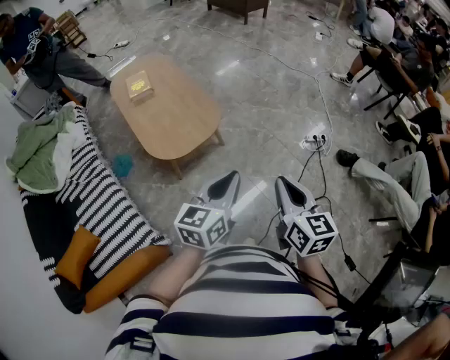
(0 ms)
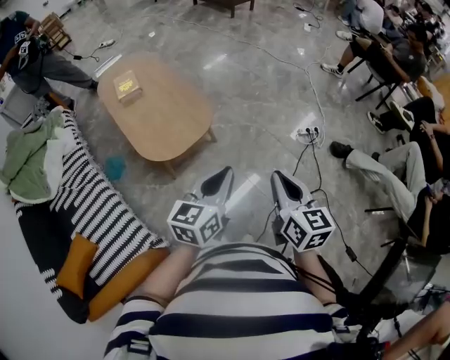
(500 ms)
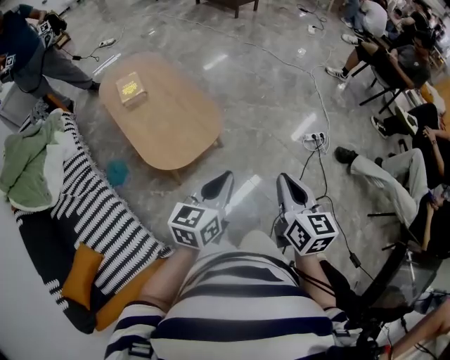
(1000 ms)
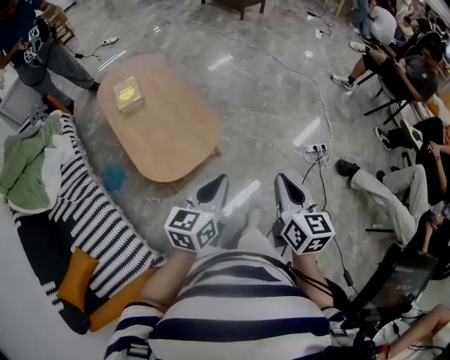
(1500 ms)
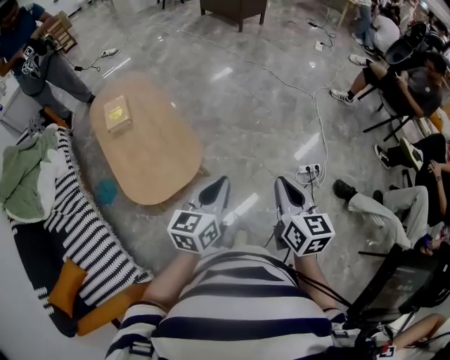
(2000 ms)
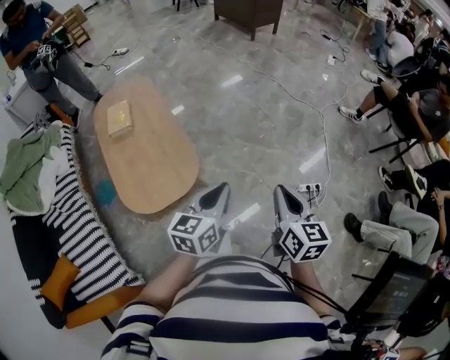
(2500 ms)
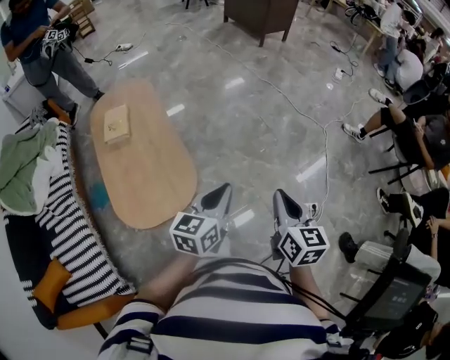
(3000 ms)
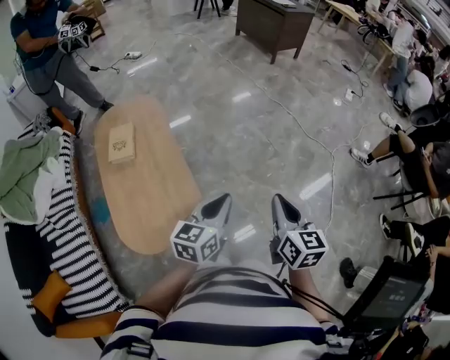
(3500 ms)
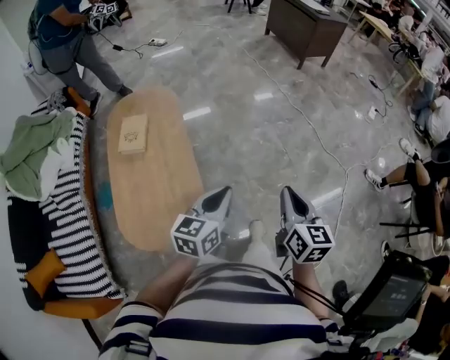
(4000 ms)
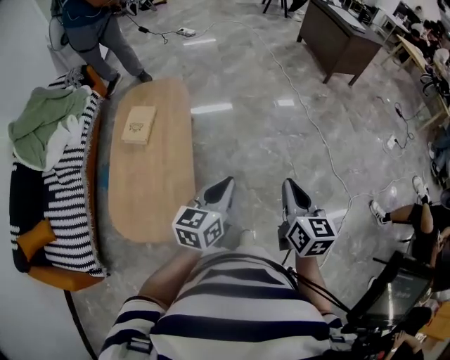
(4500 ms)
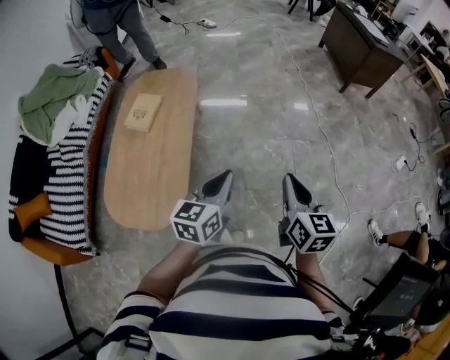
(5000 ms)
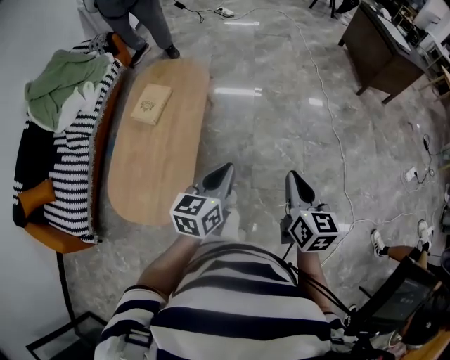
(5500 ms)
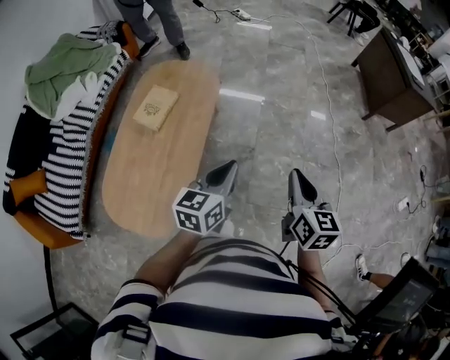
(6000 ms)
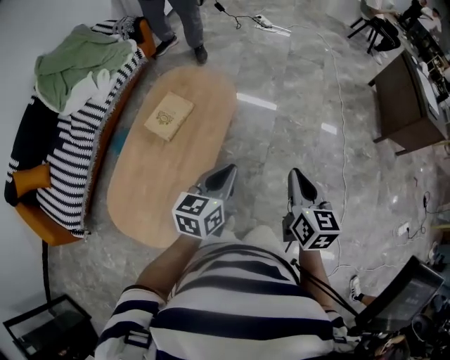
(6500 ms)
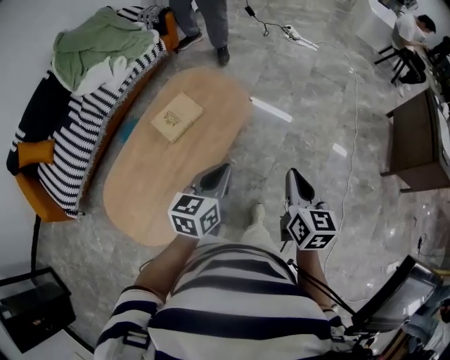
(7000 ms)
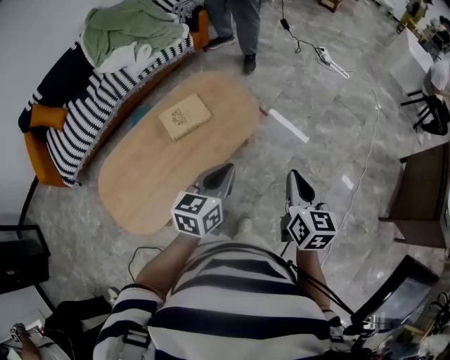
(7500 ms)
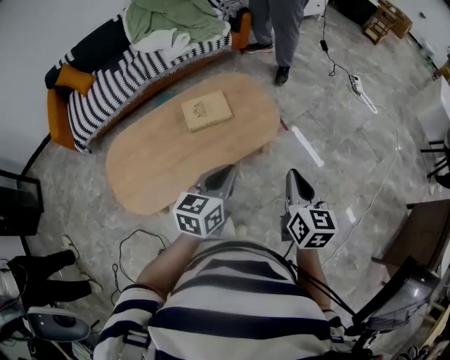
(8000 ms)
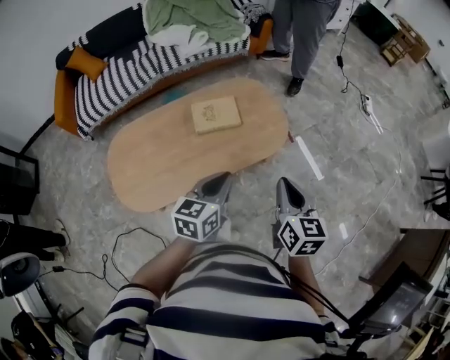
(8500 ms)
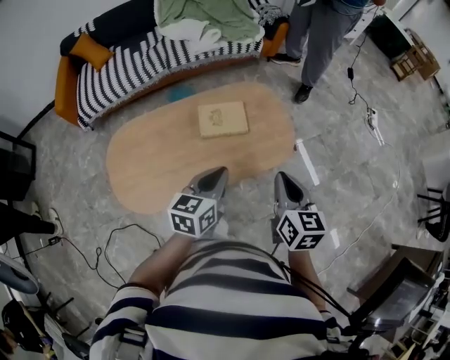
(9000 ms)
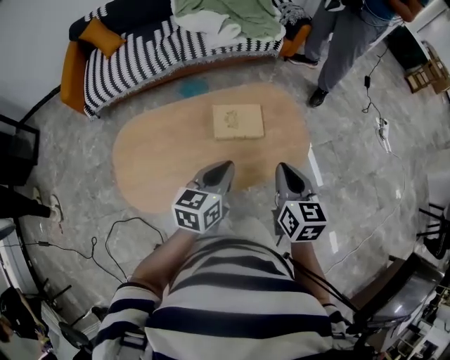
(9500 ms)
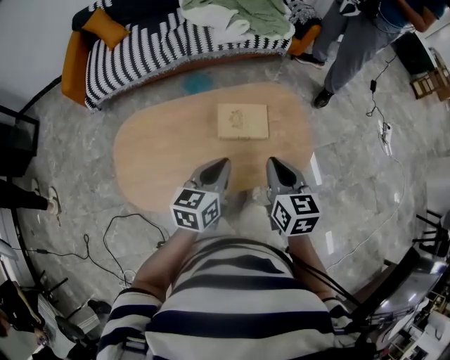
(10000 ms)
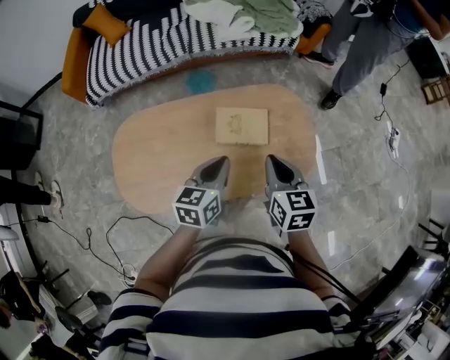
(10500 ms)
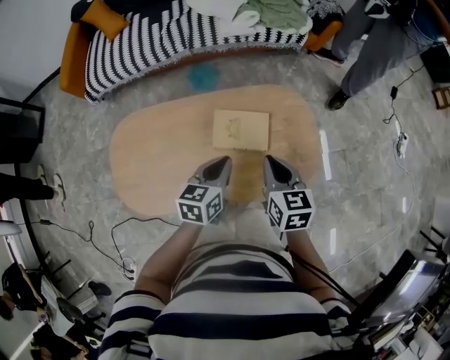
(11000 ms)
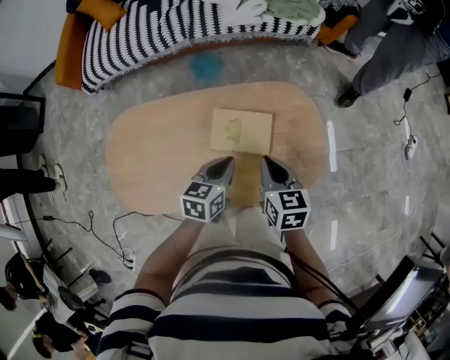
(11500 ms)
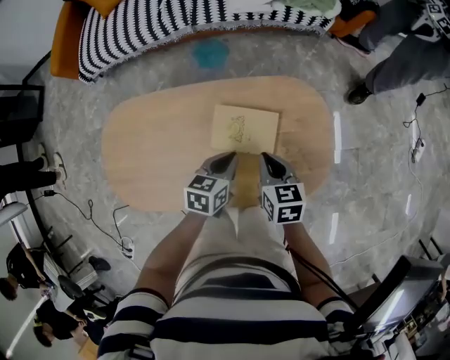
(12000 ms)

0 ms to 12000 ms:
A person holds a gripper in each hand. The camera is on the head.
0 ms to 2000 ms: Both grippers move forward, about 25 cm.
2000 ms to 4000 ms: Both grippers travel together forward, approximately 35 cm.
4000 ms to 6000 ms: The left gripper shifts by approximately 25 cm, and rotates approximately 30 degrees; the right gripper ends up some 30 cm from where it was, and changes its angle by roughly 30 degrees.
6000 ms to 8000 ms: The right gripper changes place by about 30 cm, and changes its angle by some 50 degrees, while the left gripper changes place by some 20 cm, and turns by some 50 degrees.
8000 ms to 10000 ms: The two grippers go about 25 cm to the left and forward. The right gripper turns by approximately 30 degrees. Meanwhile the left gripper turns by some 20 degrees.
10000 ms to 12000 ms: Both grippers travel together downward and forward, approximately 25 cm. The right gripper swivels roughly 20 degrees. Meanwhile the left gripper changes its angle by some 20 degrees.

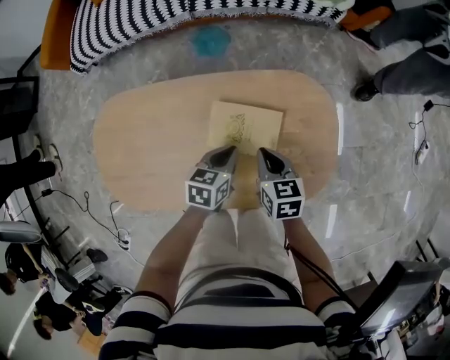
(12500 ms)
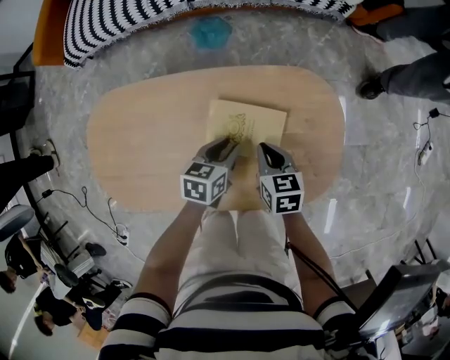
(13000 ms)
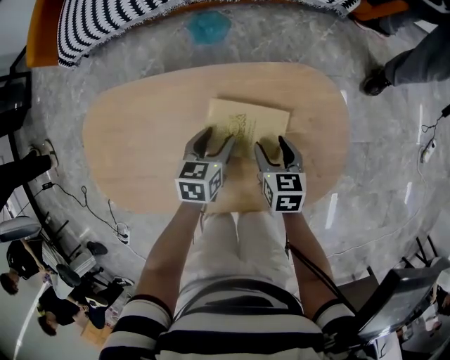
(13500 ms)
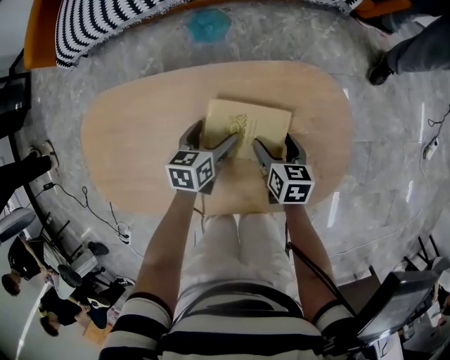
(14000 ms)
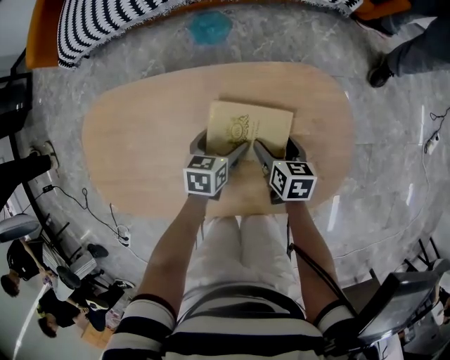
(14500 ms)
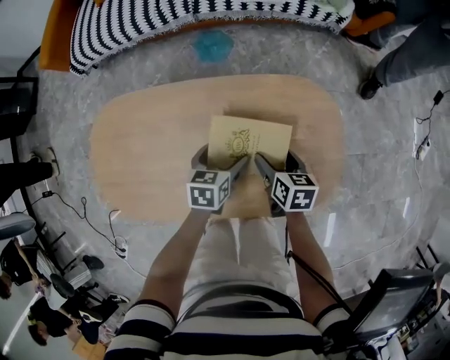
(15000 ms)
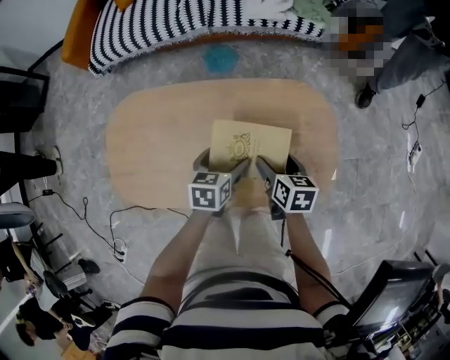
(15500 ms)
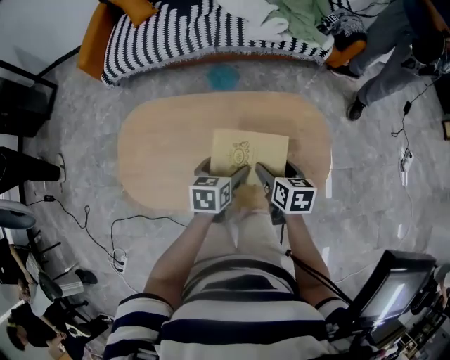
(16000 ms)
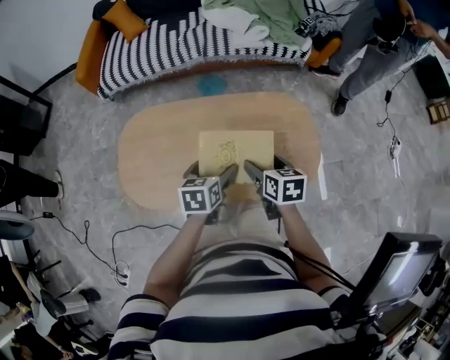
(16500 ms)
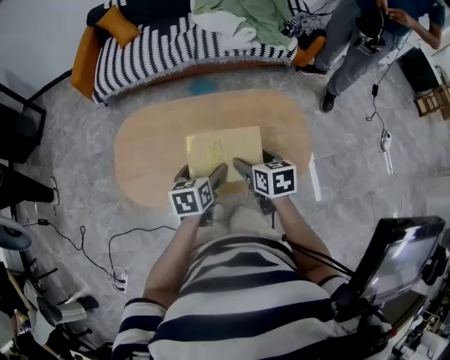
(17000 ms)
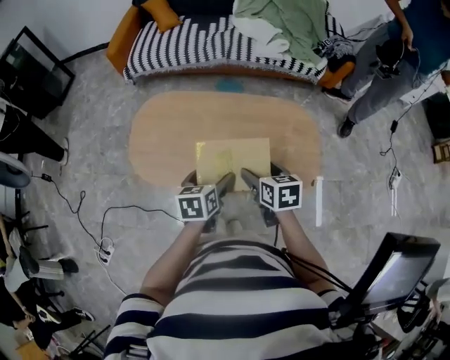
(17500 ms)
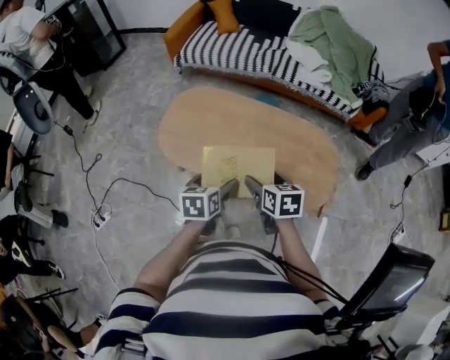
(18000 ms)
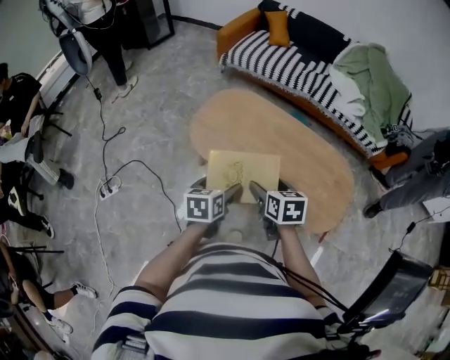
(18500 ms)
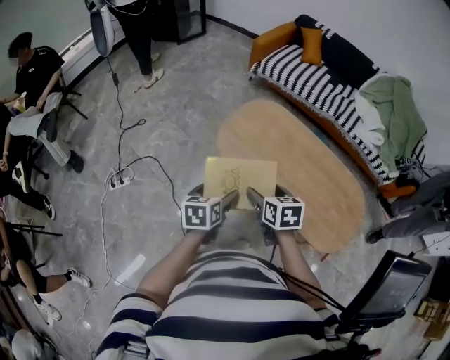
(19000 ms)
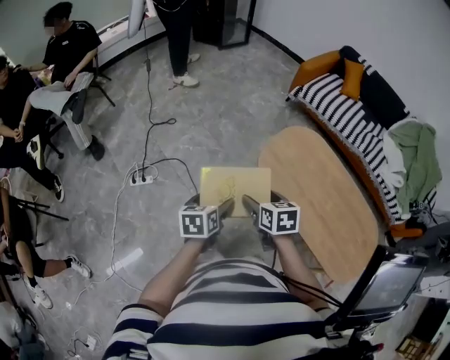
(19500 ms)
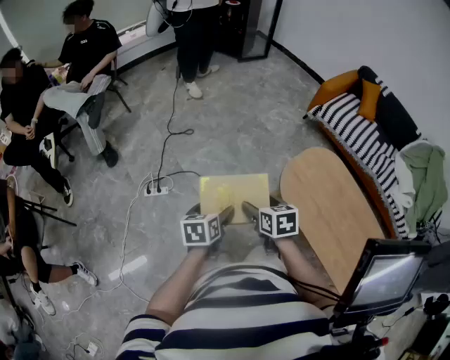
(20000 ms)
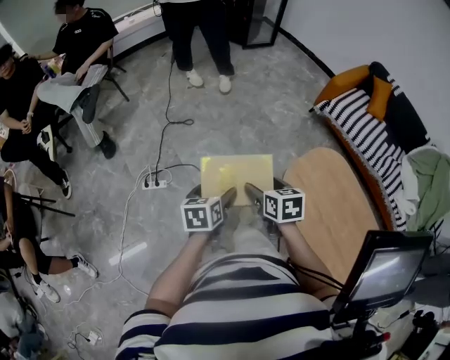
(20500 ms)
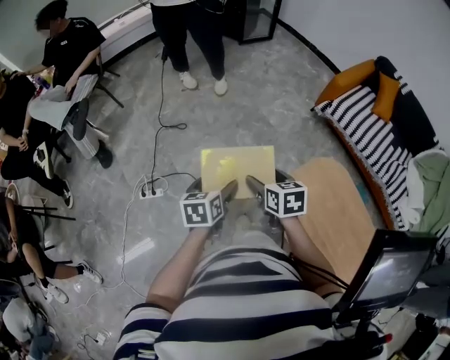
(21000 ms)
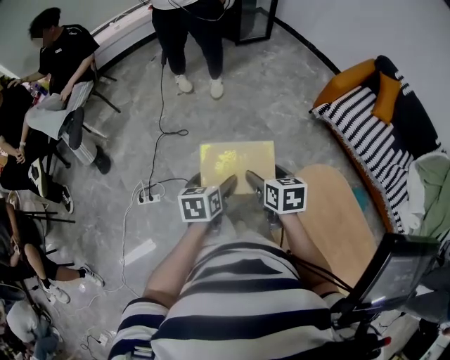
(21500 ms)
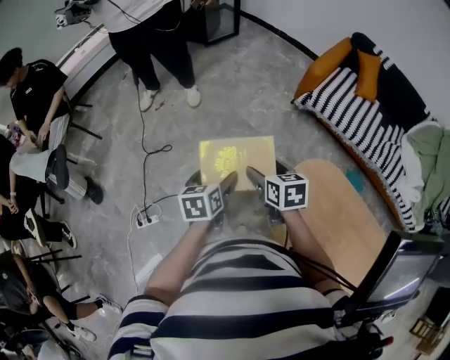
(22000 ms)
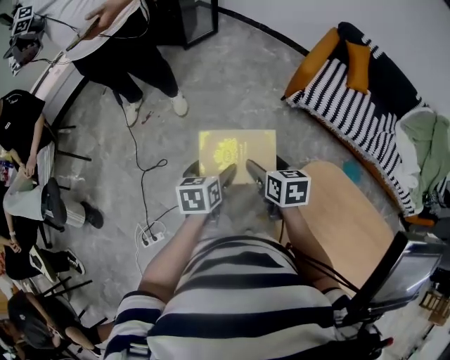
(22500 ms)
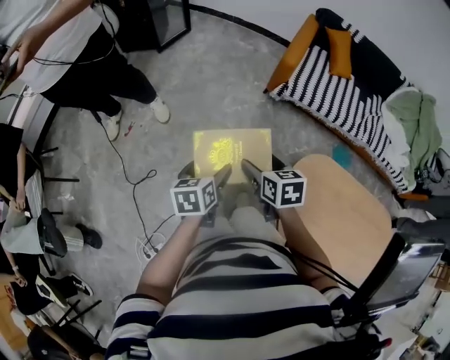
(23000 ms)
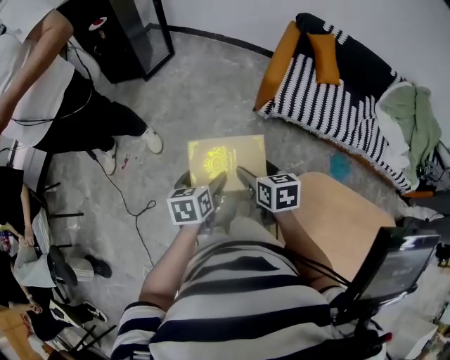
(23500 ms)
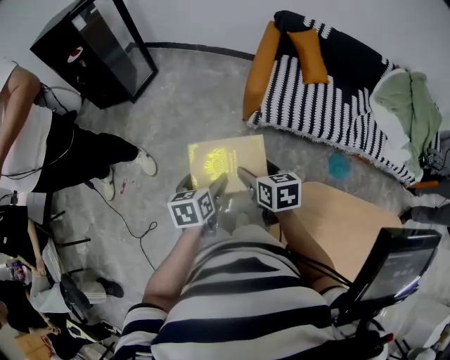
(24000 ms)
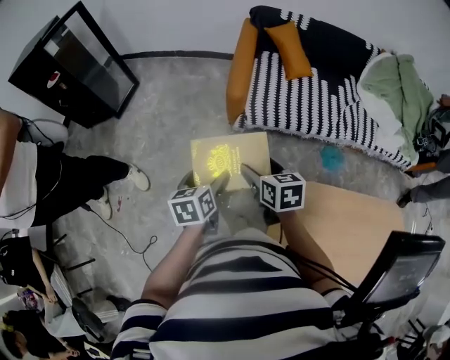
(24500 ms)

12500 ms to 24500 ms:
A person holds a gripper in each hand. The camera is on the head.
12500 ms to 14500 ms: Both grippers move downward, approximately 10 cm. The left gripper opens up. Meanwhile the right gripper opens up.
14500 ms to 16500 ms: The grippers both shift upward and backward by about 30 cm.
16500 ms to 18500 ms: The left gripper moves approximately 25 cm, and changes its angle by approximately 40 degrees. The right gripper ends up about 20 cm from where it was, and rotates roughly 40 degrees.
18500 ms to 20500 ms: The two grippers travel together, about 50 cm. The right gripper rotates approximately 30 degrees. The left gripper changes its angle by roughly 30 degrees.
20500 ms to 22500 ms: Both grippers move forward, some 35 cm. The right gripper turns by roughly 20 degrees; the left gripper turns by approximately 20 degrees.
22500 ms to 24500 ms: Both grippers move forward and to the right, about 30 cm. The left gripper rotates roughly 20 degrees. The right gripper changes its angle by about 20 degrees.

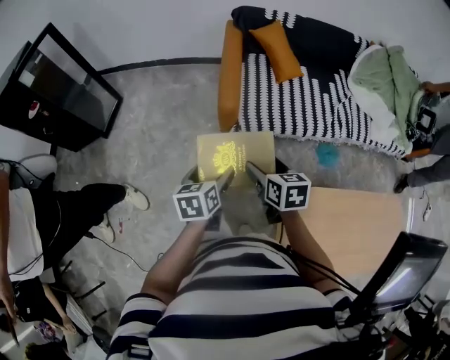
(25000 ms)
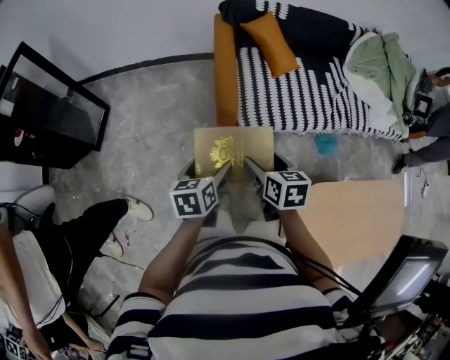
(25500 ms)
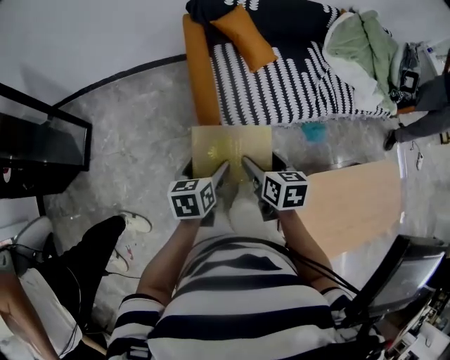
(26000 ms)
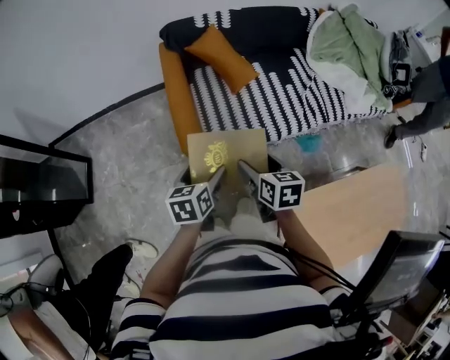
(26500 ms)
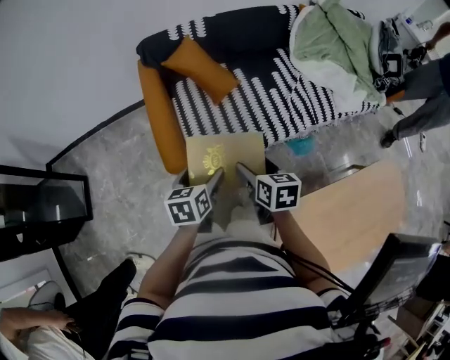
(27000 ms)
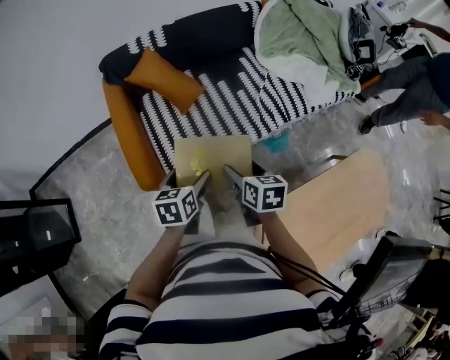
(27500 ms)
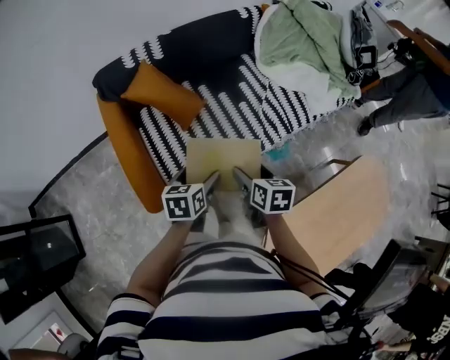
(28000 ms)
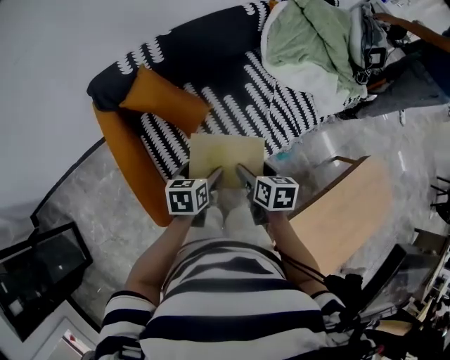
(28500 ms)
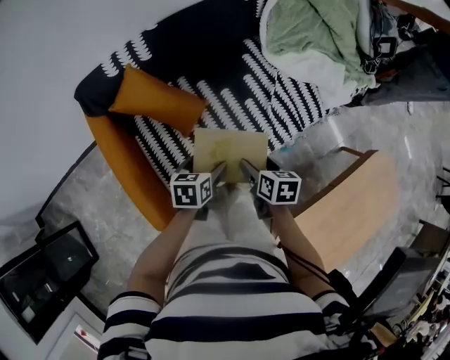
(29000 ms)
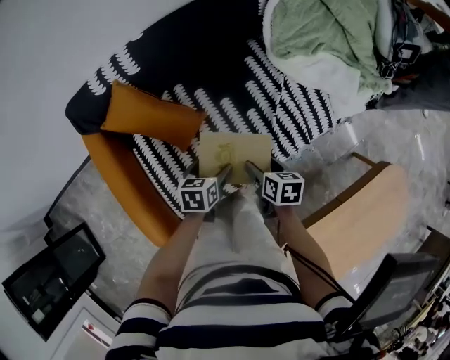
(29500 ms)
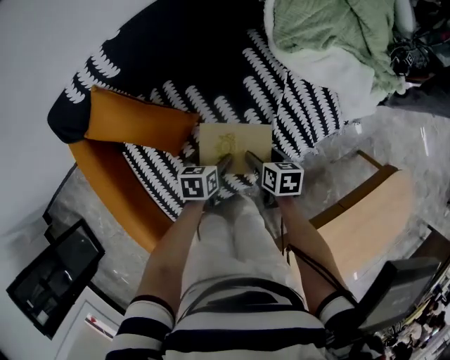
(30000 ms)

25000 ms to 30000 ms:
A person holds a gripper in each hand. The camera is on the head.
25000 ms to 27500 ms: The left gripper ends up approximately 35 cm from where it was, and swivels roughly 30 degrees, while the right gripper moves some 30 cm, and turns by approximately 30 degrees.
27500 ms to 30000 ms: Both grippers travel together forward and downward, about 40 cm. The left gripper changes its angle by roughly 20 degrees.
